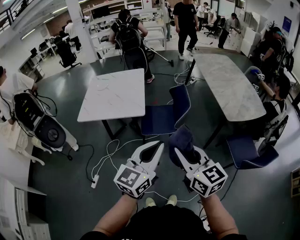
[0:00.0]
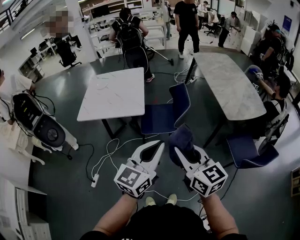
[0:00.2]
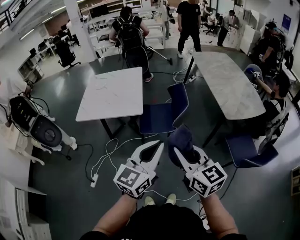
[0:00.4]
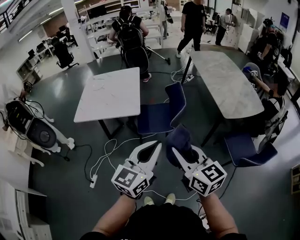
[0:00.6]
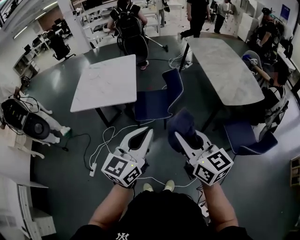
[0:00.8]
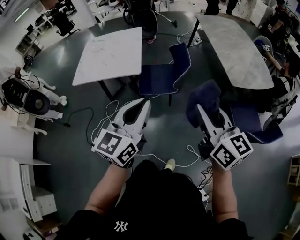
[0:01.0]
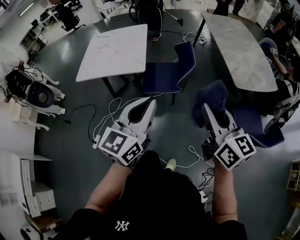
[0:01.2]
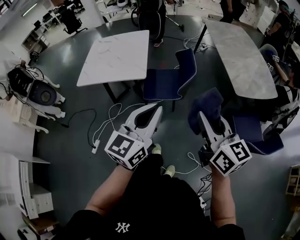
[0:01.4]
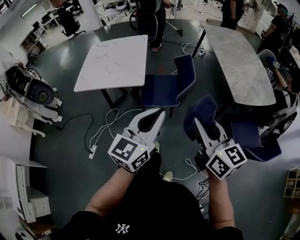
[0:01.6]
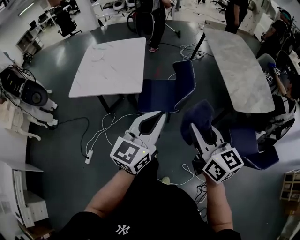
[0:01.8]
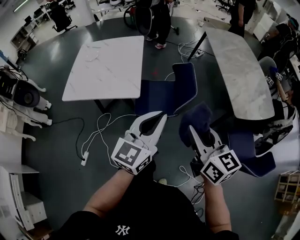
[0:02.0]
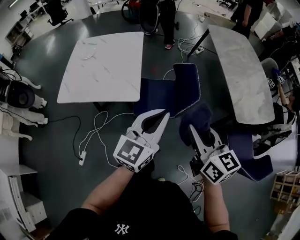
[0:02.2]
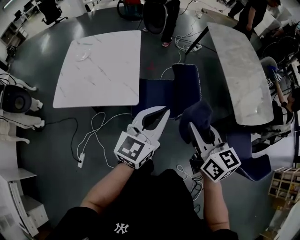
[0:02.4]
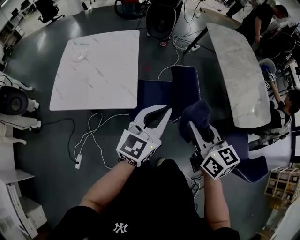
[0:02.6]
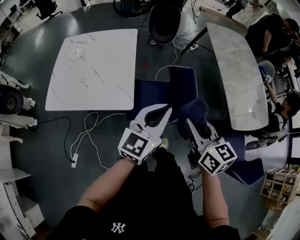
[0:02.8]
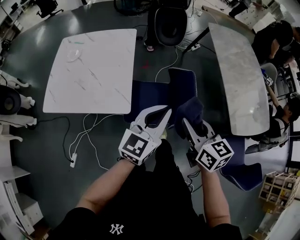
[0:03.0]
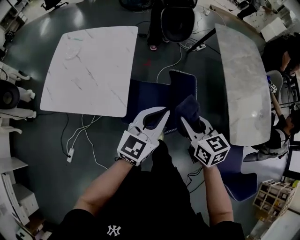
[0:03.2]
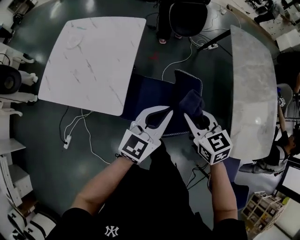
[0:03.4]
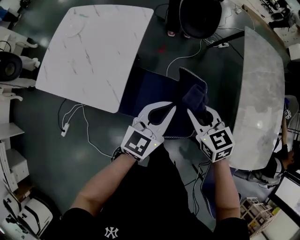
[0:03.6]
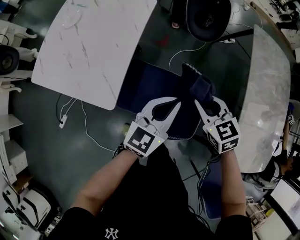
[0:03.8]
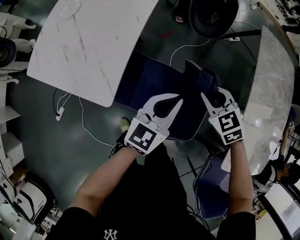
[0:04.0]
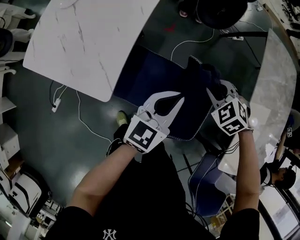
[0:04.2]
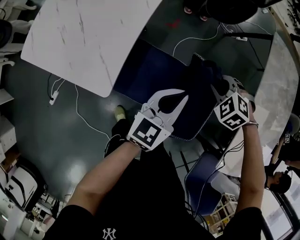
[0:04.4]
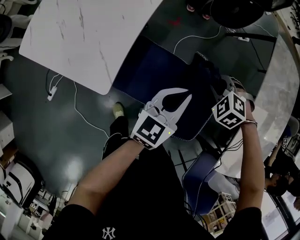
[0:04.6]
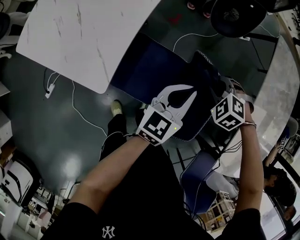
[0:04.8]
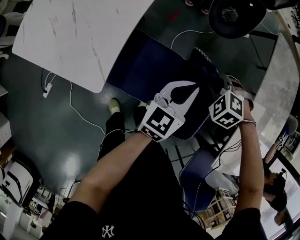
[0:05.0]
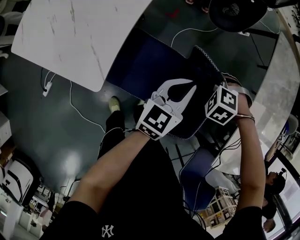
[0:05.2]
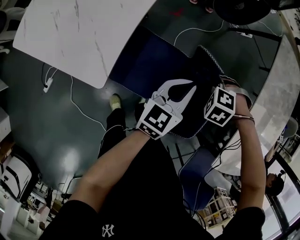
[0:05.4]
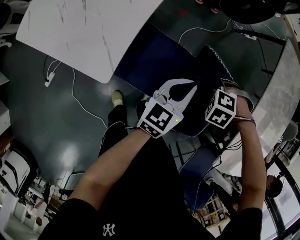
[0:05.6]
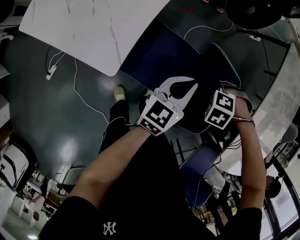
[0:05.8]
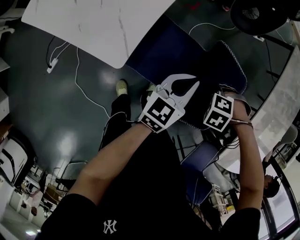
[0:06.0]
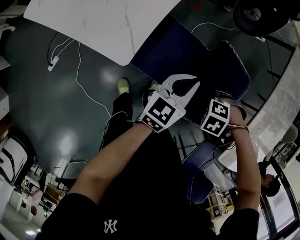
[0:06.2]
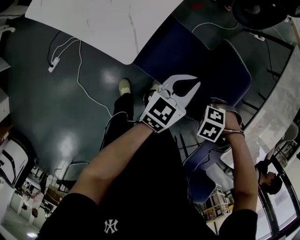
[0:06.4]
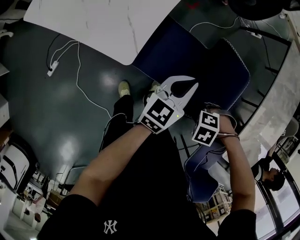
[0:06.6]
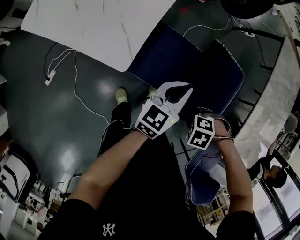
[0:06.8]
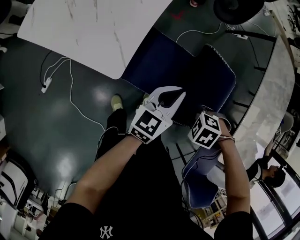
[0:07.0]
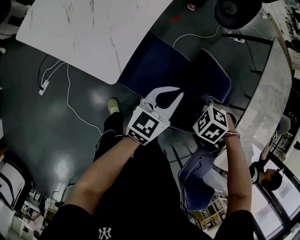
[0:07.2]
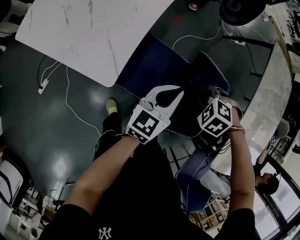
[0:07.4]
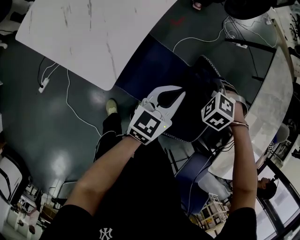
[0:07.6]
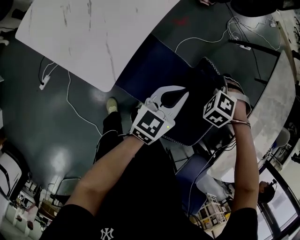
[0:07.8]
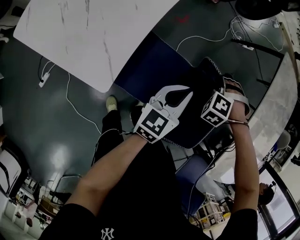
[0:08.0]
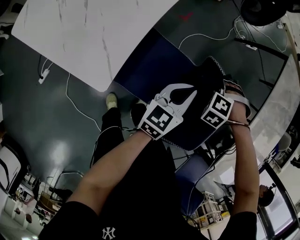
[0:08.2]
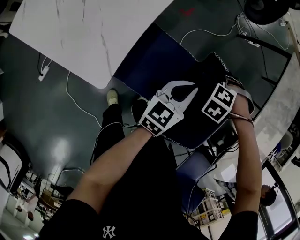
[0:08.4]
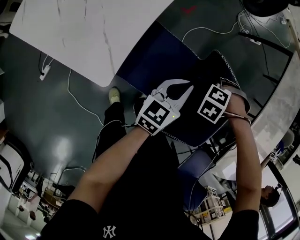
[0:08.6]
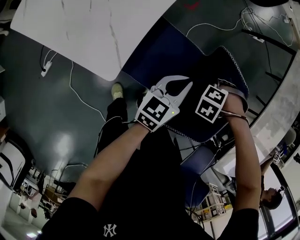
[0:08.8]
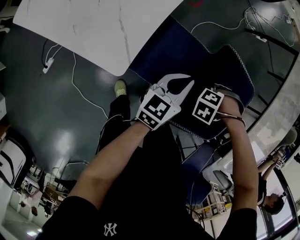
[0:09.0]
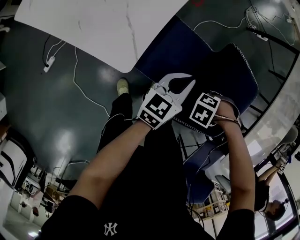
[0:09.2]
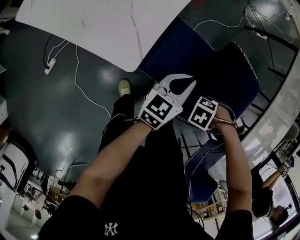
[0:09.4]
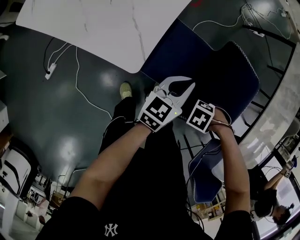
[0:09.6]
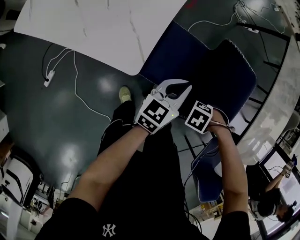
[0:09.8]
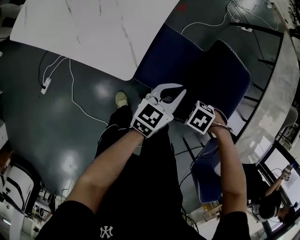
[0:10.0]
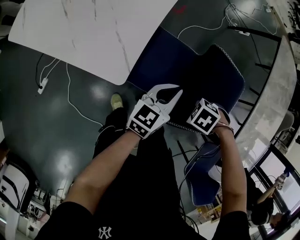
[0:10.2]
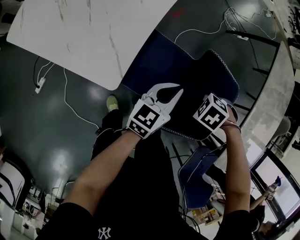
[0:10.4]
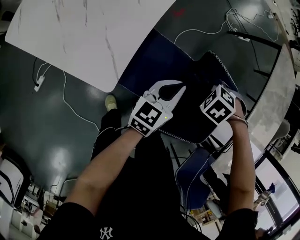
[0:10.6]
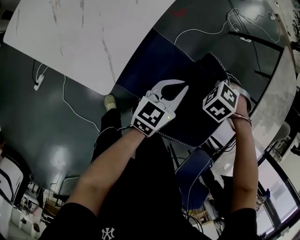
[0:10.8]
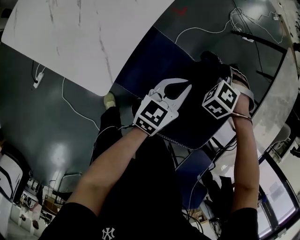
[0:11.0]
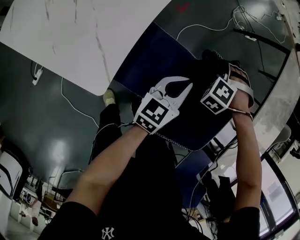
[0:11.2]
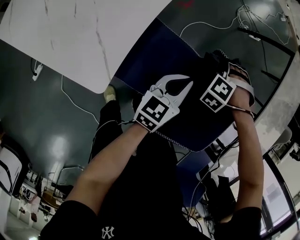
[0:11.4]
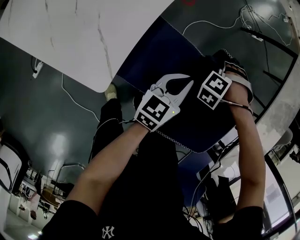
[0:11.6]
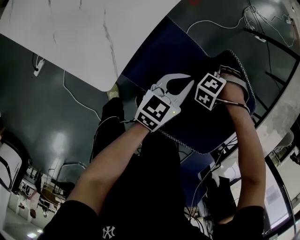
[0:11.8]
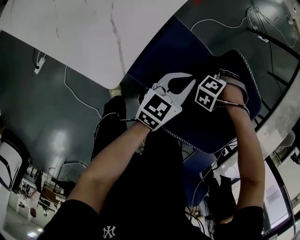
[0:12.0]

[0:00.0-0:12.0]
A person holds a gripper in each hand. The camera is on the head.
0:00.0 to 0:01.6: The left gripper ends up roughly 10 cm from where it was.
0:01.6 to 0:03.0: The left gripper ends up roughly 40 cm from where it was.
0:03.0 to 0:04.4: The left gripper ends up about 30 cm from where it was, and changes its angle by about 20 degrees.
0:04.4 to 0:06.0: The left gripper travels downward by roughly 10 cm.
0:07.6 to 0:09.0: The left gripper travels downward by approximately 10 cm.
0:10.4 to 0:12.0: The left gripper heads downward, covering roughly 10 cm.

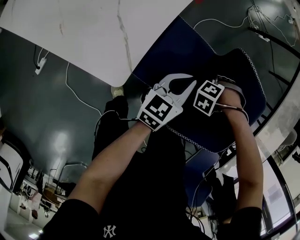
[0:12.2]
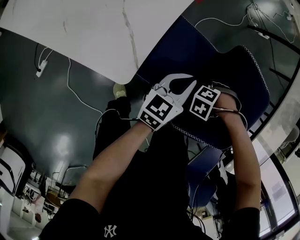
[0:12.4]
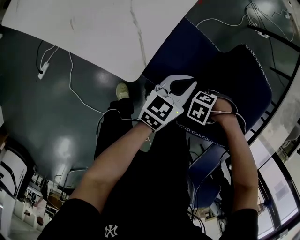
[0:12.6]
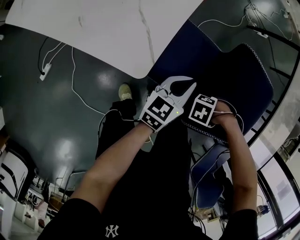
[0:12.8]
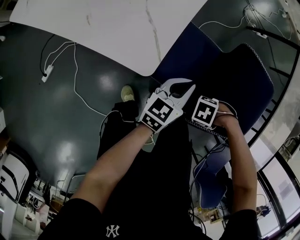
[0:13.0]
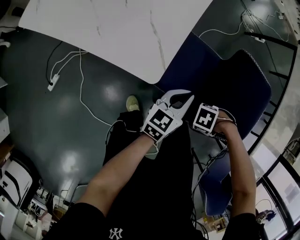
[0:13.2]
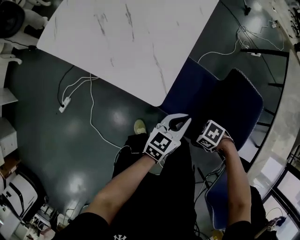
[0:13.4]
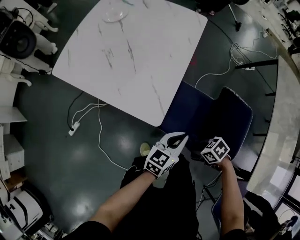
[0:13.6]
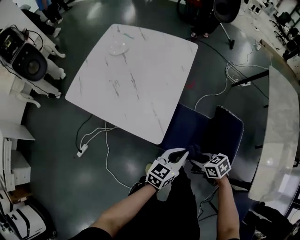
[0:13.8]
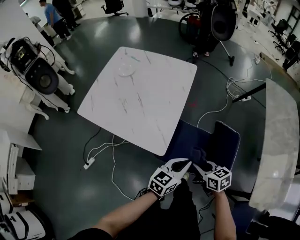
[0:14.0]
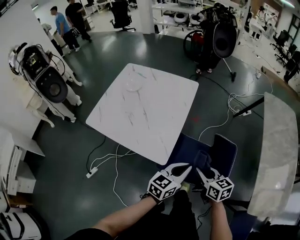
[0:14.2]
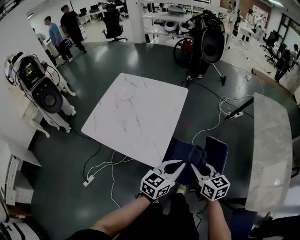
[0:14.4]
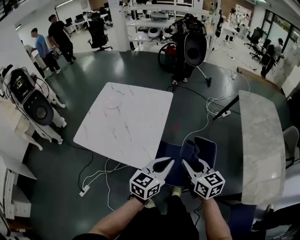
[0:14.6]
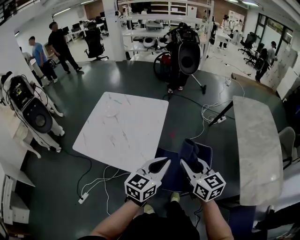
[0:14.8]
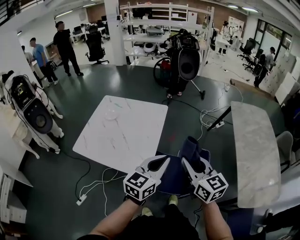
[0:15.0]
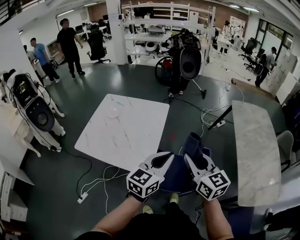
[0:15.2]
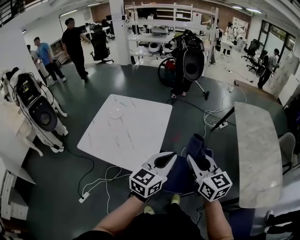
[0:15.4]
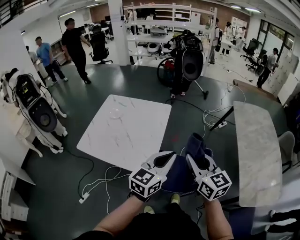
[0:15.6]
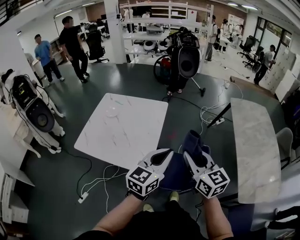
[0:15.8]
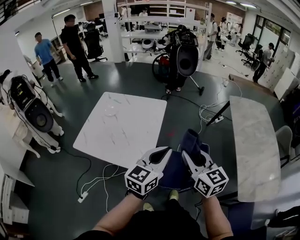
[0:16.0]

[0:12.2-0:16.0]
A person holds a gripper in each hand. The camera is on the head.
0:12.2 to 0:13.4: The left gripper changes place by roughly 15 cm.
0:13.4 to 0:14.8: The left gripper shifts roughly 40 cm upward.
0:14.8 to 0:16.0: The left gripper shifts about 5 cm upward.

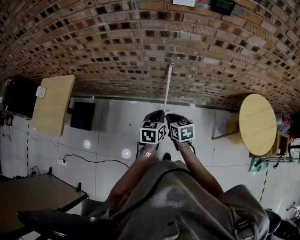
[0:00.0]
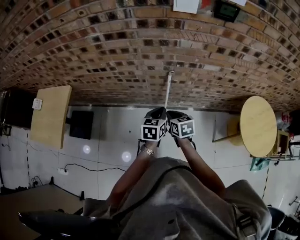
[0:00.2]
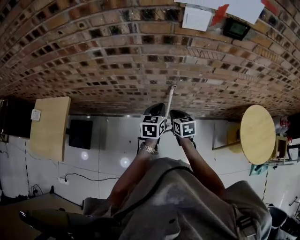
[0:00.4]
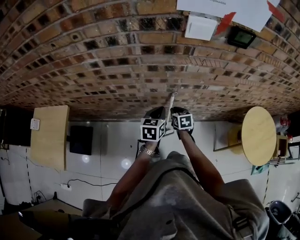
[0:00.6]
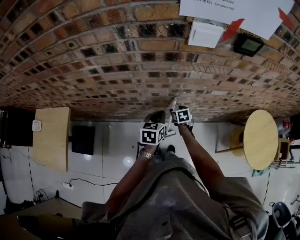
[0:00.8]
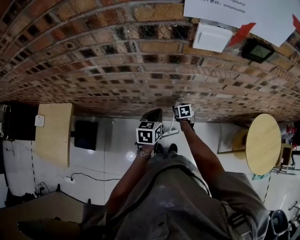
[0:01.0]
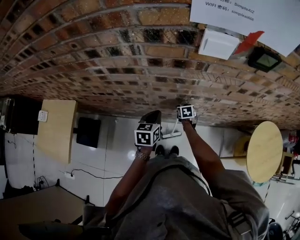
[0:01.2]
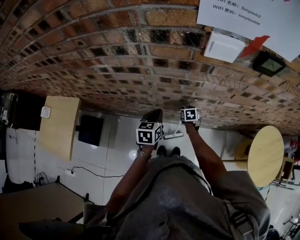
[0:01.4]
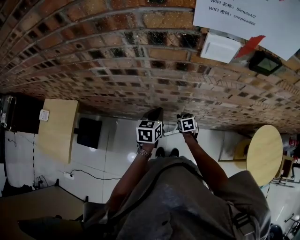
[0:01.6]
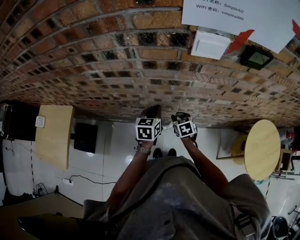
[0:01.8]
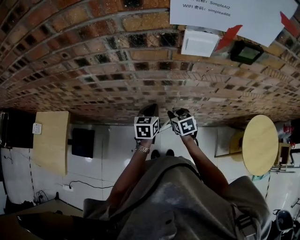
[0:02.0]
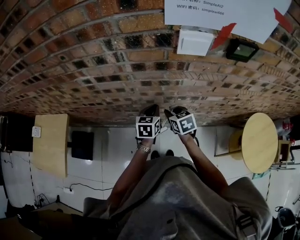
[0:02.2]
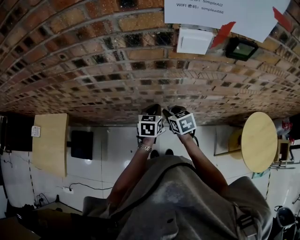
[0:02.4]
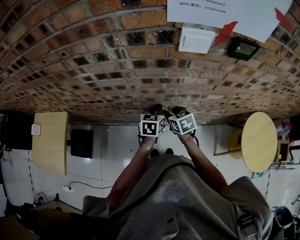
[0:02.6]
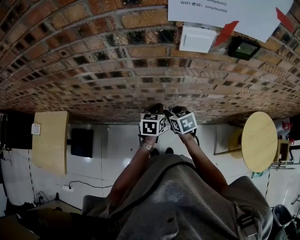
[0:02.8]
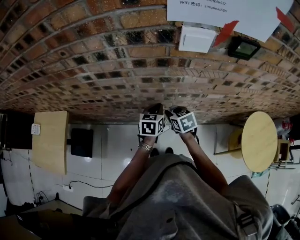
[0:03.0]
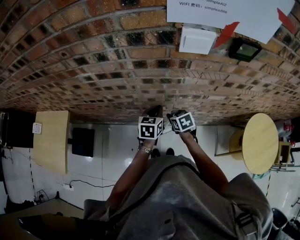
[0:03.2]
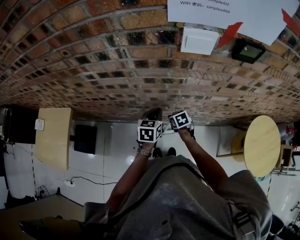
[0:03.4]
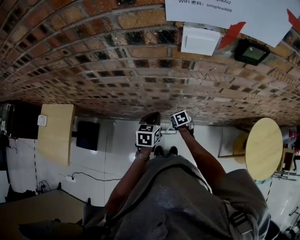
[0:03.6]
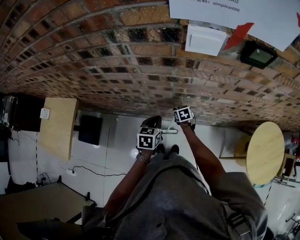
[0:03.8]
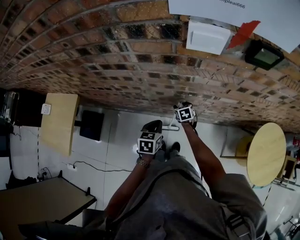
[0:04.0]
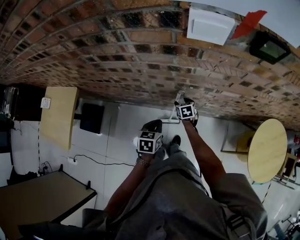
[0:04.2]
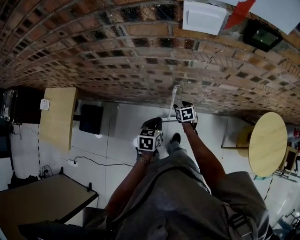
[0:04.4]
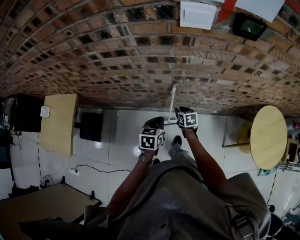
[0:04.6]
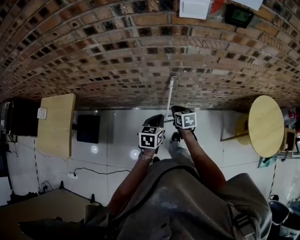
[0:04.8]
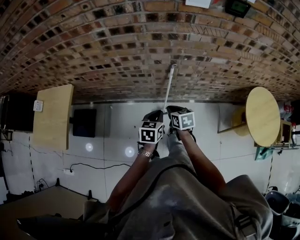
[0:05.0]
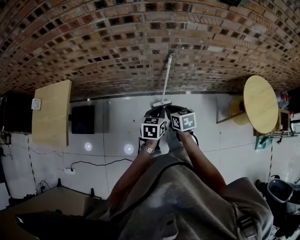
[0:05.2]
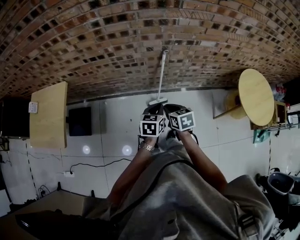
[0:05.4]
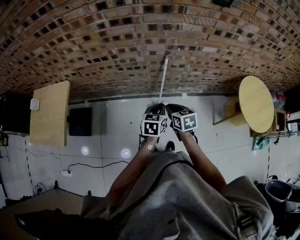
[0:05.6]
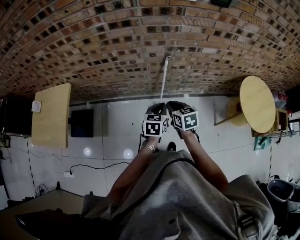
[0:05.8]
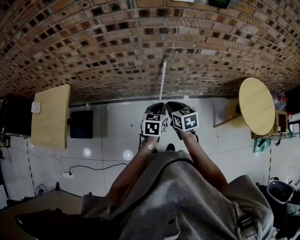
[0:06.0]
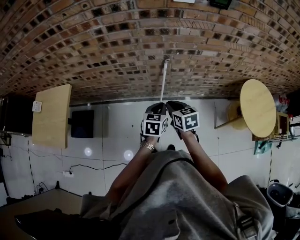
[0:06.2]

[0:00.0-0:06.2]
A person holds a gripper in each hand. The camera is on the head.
0:00.0 to 0:01.6: The right gripper goes some 35 cm forward and downward, and opens; the left gripper goes roughly 30 cm forward.
0:01.6 to 0:03.2: The left gripper shifts some 5 cm to the right; the right gripper is displaced upward by approximately 10 cm.
0:03.2 to 0:04.6: The left gripper heads backward and downward, covering about 15 cm. The right gripper travels downward and backward by some 10 cm, and opens and closes again.
0:04.6 to 0:06.2: The left gripper moves backward, roughly 15 cm; the right gripper moves backward and upward, some 25 cm.

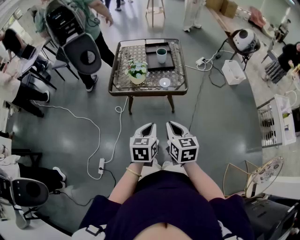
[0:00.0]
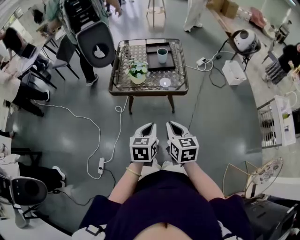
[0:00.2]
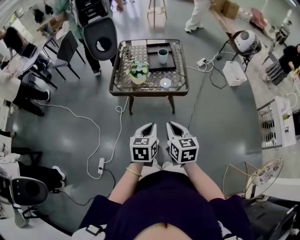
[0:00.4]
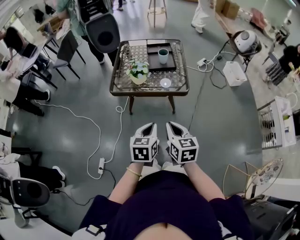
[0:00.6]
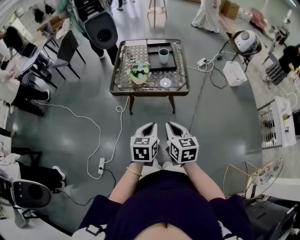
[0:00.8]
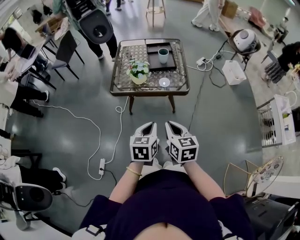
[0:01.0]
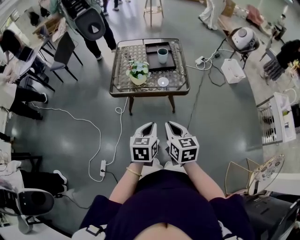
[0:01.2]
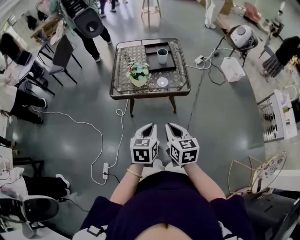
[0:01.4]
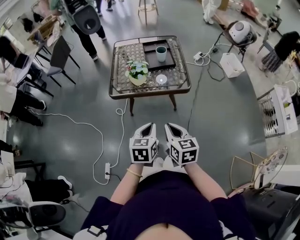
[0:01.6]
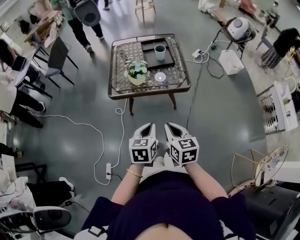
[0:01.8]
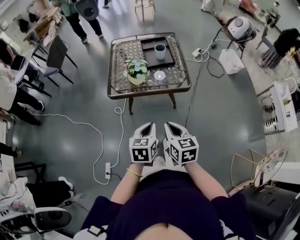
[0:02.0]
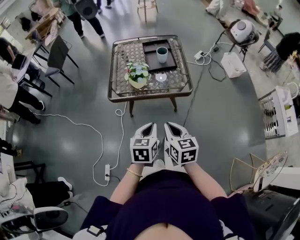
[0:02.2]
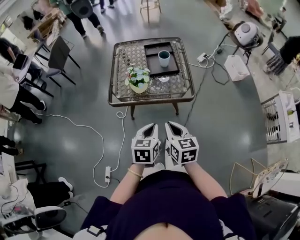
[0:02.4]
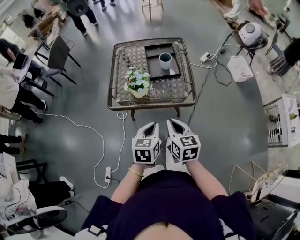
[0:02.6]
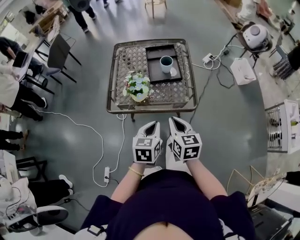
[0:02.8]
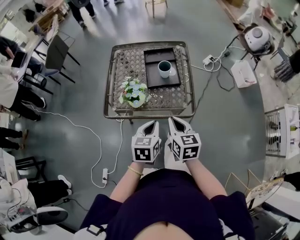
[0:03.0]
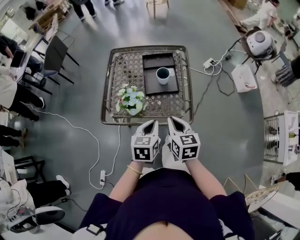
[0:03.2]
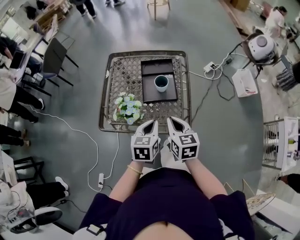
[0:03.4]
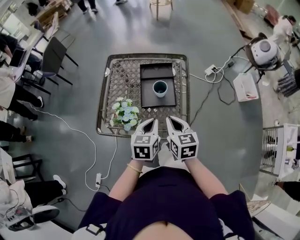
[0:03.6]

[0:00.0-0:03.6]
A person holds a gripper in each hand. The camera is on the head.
0:00.0 to 0:01.8: The right gripper heads to the left, covering some 5 cm. Meanwhile the left gripper changes place by roughly 5 cm.
0:01.8 to 0:03.6: The grippers both shift forward by about 40 cm.
